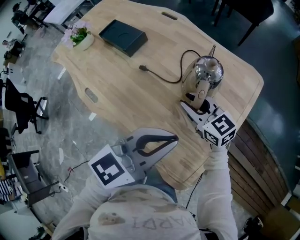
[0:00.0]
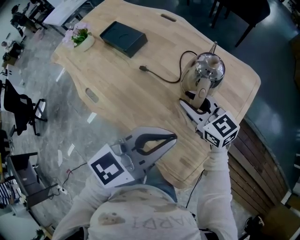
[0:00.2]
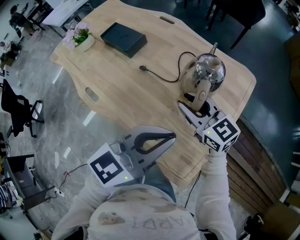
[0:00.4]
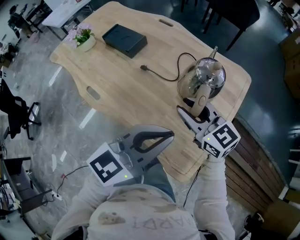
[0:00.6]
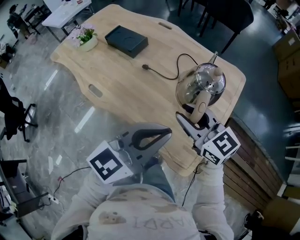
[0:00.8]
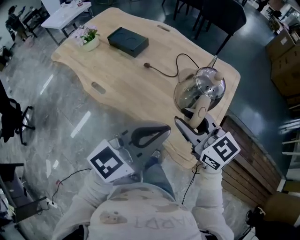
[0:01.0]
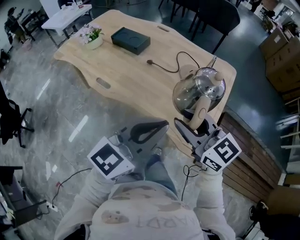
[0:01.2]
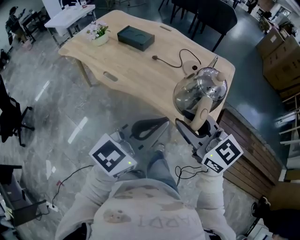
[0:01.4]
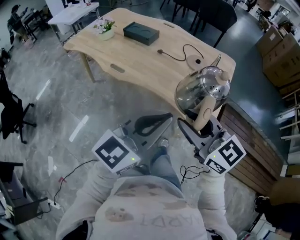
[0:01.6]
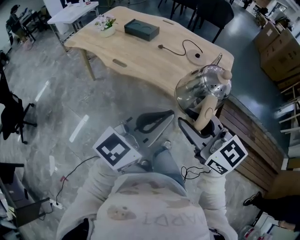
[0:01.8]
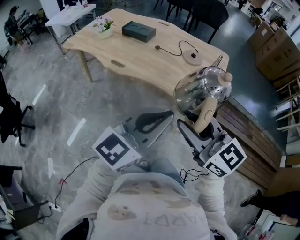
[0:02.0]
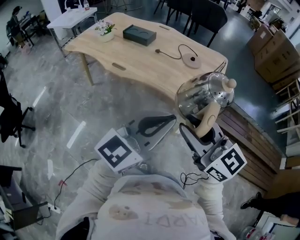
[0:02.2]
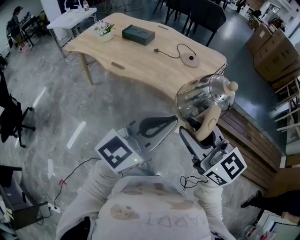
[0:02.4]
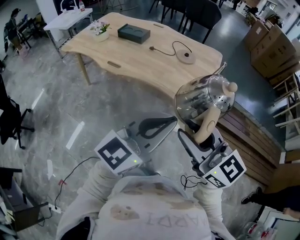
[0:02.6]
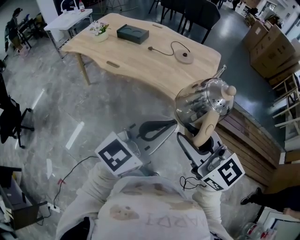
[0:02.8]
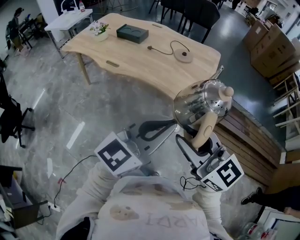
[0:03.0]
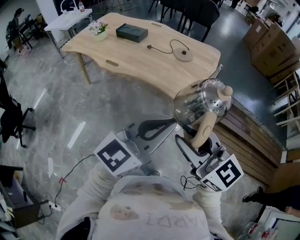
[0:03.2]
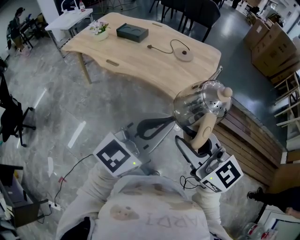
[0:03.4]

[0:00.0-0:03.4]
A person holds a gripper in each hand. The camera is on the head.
0:00.0 to 0:01.6: The right gripper goes some 50 cm backward and upward, while the left gripper shifts some 40 cm backward and to the left.
0:01.6 to 0:03.4: The two grippers go approximately 15 cm backward.

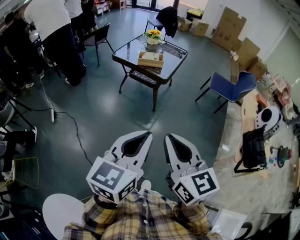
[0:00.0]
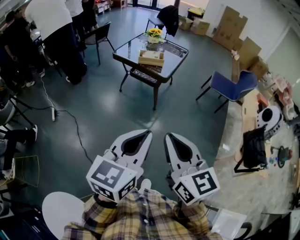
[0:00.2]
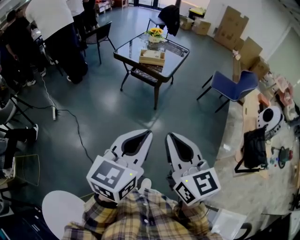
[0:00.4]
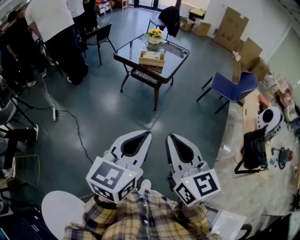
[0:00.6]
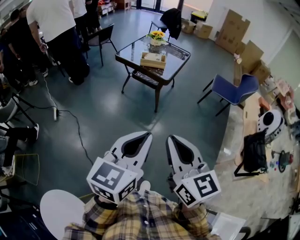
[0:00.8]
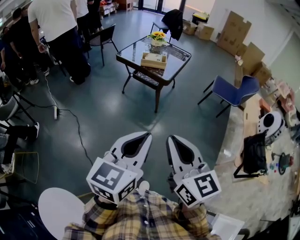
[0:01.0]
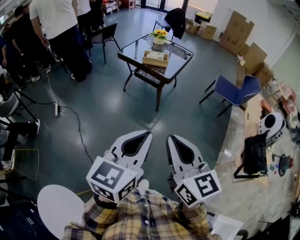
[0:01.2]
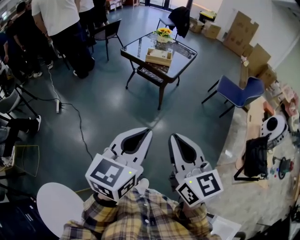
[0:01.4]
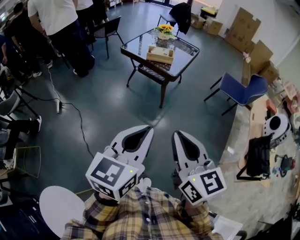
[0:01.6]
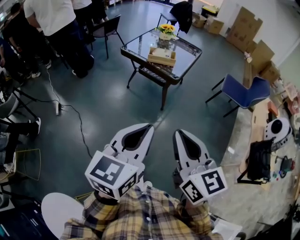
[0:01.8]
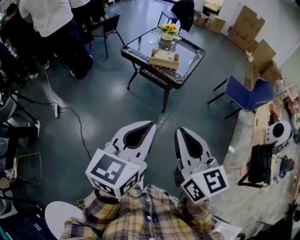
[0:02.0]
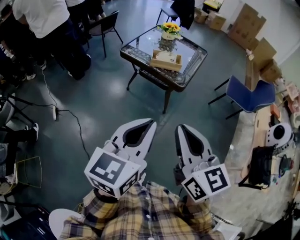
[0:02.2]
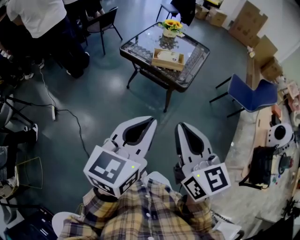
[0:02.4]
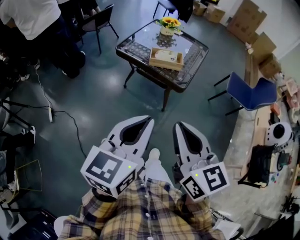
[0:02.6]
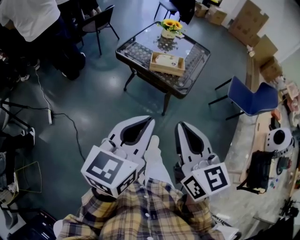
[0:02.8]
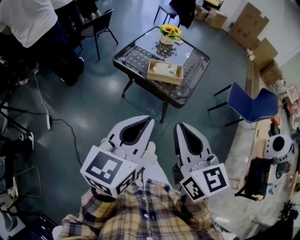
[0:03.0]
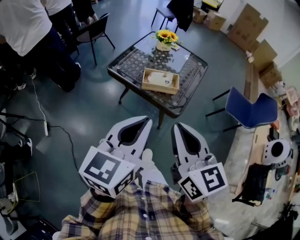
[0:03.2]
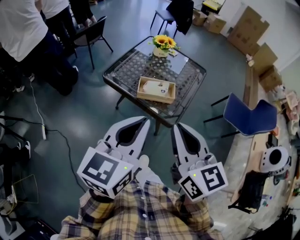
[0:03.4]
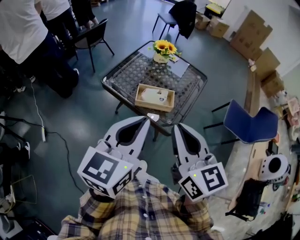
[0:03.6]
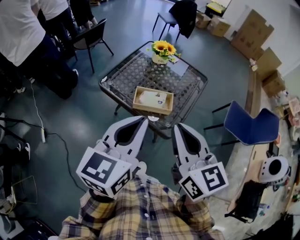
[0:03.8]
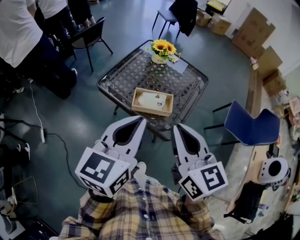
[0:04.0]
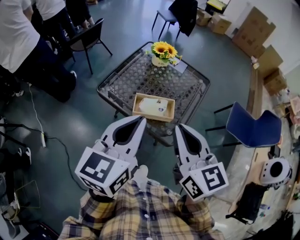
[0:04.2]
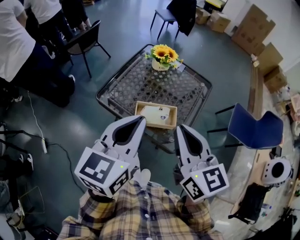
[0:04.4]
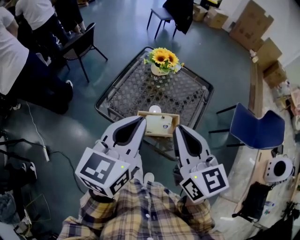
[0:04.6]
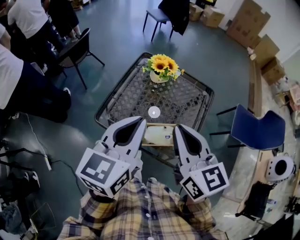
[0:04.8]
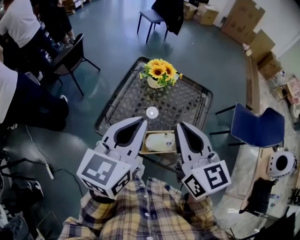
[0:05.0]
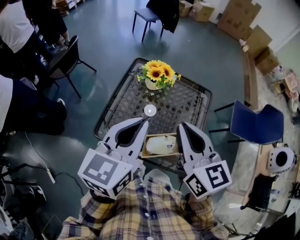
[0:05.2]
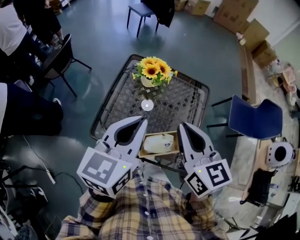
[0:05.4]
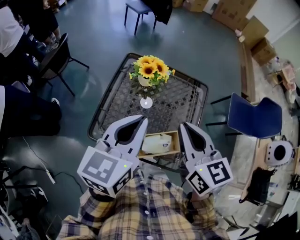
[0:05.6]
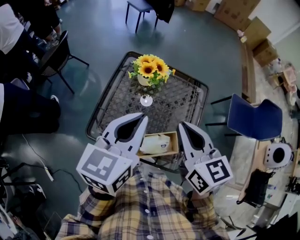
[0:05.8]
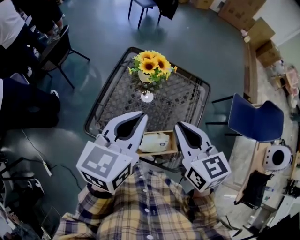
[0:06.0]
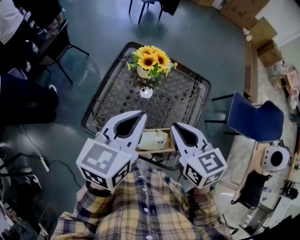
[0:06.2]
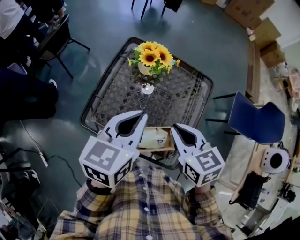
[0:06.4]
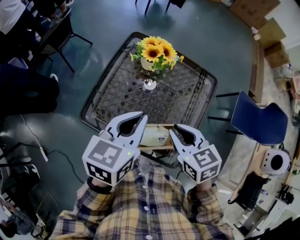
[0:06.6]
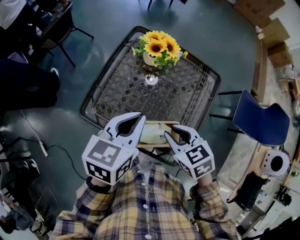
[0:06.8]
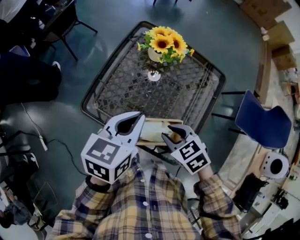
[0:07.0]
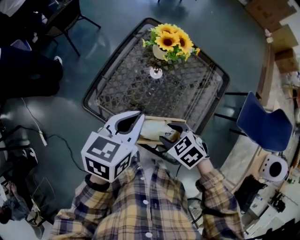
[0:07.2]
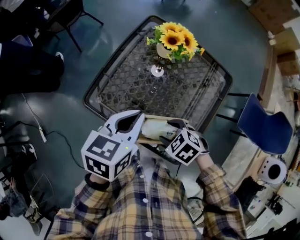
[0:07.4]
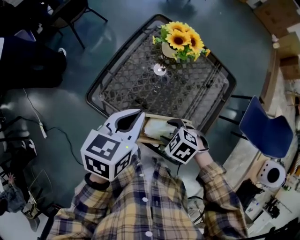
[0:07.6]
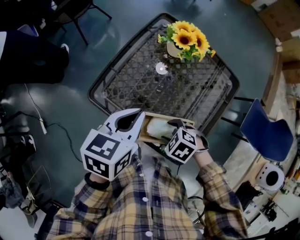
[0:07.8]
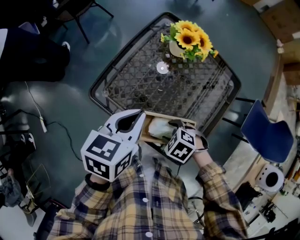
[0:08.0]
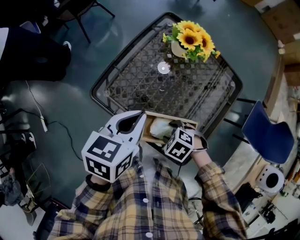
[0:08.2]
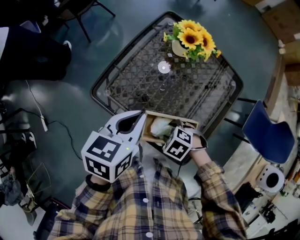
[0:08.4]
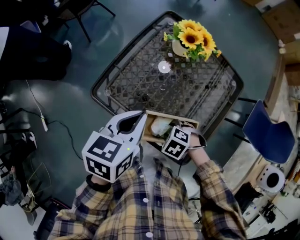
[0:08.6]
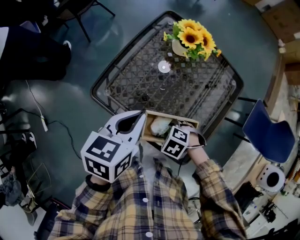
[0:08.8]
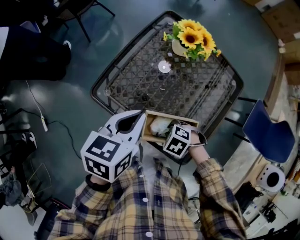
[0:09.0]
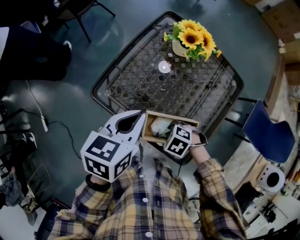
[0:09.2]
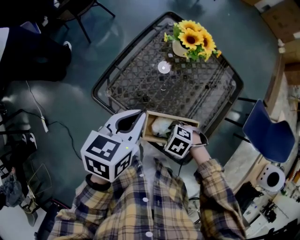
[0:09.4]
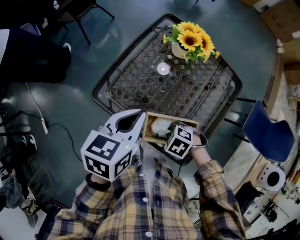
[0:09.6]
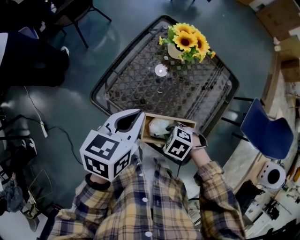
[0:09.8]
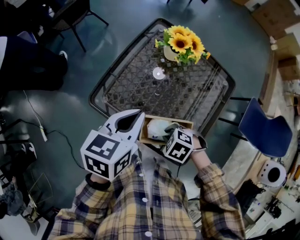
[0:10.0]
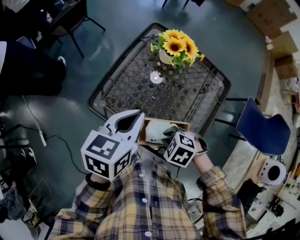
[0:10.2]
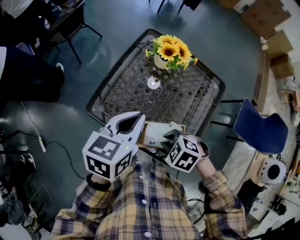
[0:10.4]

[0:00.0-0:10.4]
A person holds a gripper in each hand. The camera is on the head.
0:00.0 to 0:01.4: The grippers move only a little.
0:01.4 to 0:03.0: Both grippers travel together forward, roughly 35 cm.
0:03.0 to 0:04.4: Both grippers travel together forward, roughly 30 cm.
0:04.4 to 0:06.0: The two grippers go roughly 20 cm forward.
0:06.0 to 0:07.4: The left gripper shifts about 15 cm downward, and changes its angle by about 20 degrees, while the right gripper heads downward, covering some 25 cm, angles its fingers downward, by approximately 40 degrees, and opens up.
0:07.4 to 0:09.0: The right gripper goes about 10 cm downward, and closes.
0:09.0 to 0:10.4: The right gripper is displaced upward by roughly 10 cm, while the left gripper moves approximately 5 cm.

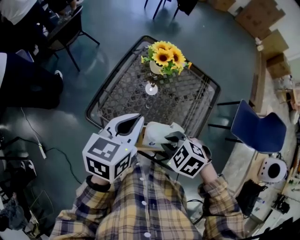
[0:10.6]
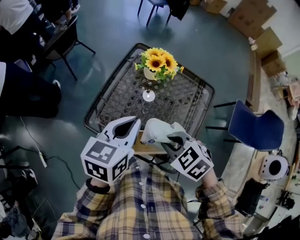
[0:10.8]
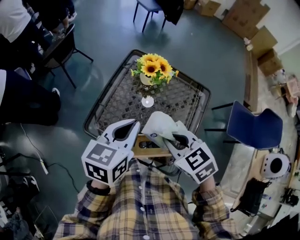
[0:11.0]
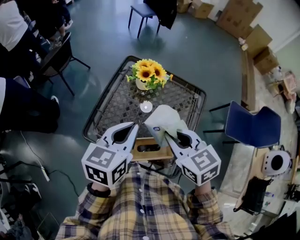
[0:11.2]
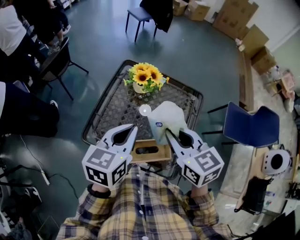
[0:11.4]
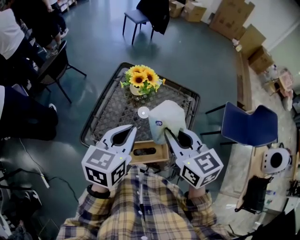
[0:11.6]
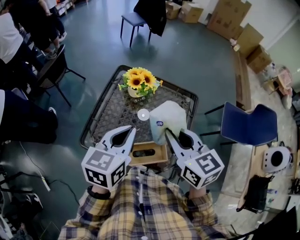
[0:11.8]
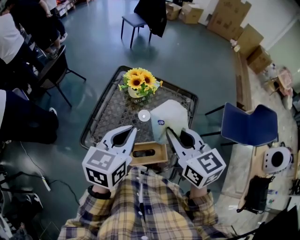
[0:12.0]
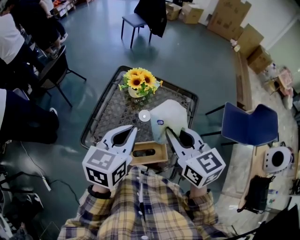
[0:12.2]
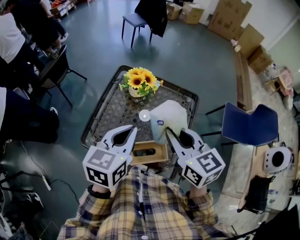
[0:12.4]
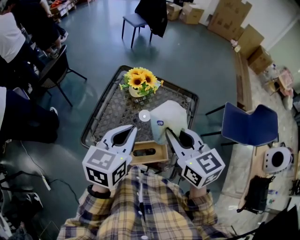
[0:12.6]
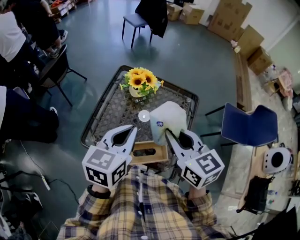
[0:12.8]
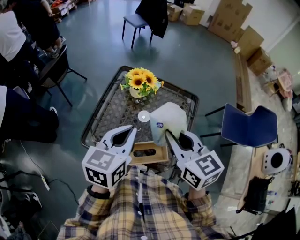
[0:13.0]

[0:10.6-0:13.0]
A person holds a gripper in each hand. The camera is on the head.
0:10.6 to 0:11.8: The right gripper goes some 20 cm upward, and angles its fingers upward, by about 40 degrees; the left gripper goes roughly 5 cm upward.
0:11.8 to 0:13.0: Both grippers stay about where they are.

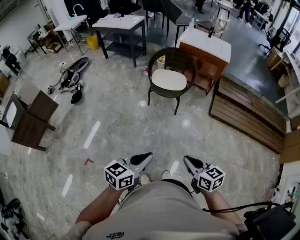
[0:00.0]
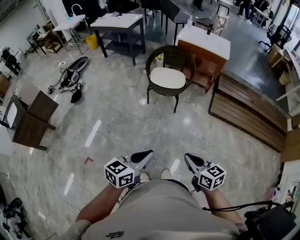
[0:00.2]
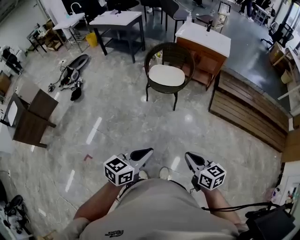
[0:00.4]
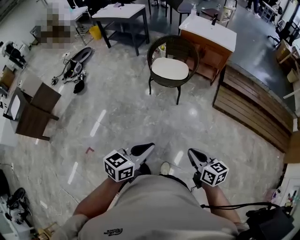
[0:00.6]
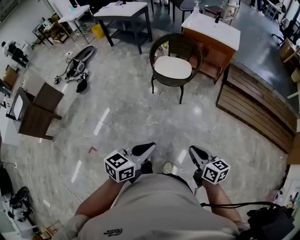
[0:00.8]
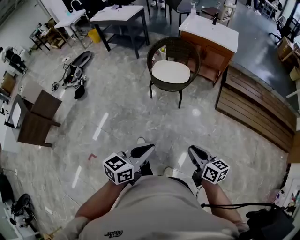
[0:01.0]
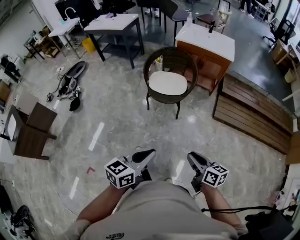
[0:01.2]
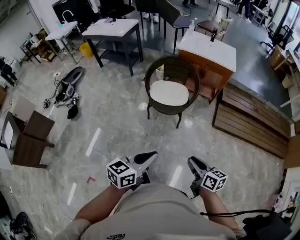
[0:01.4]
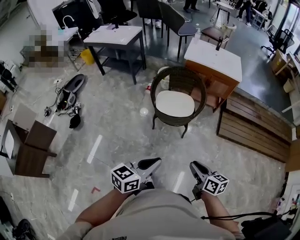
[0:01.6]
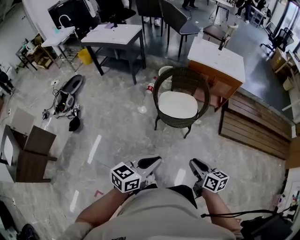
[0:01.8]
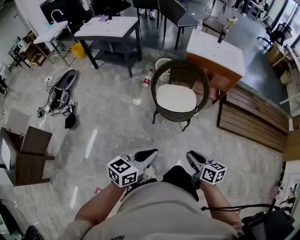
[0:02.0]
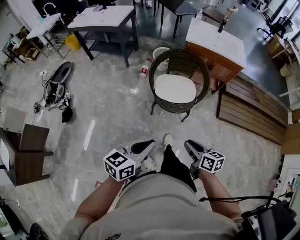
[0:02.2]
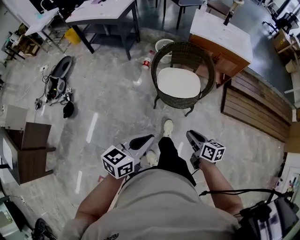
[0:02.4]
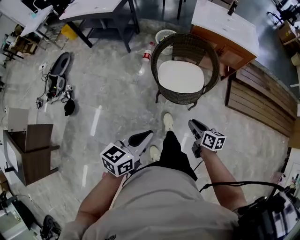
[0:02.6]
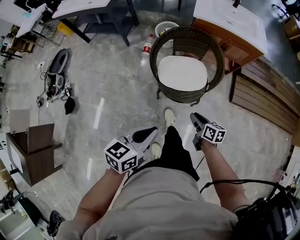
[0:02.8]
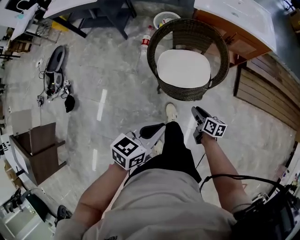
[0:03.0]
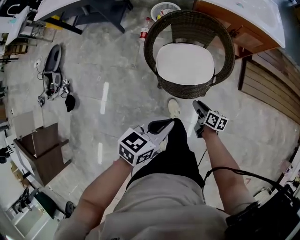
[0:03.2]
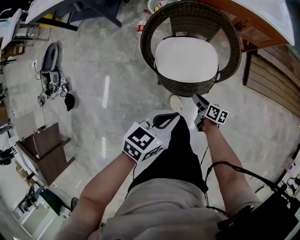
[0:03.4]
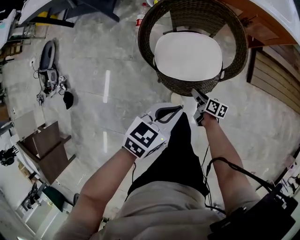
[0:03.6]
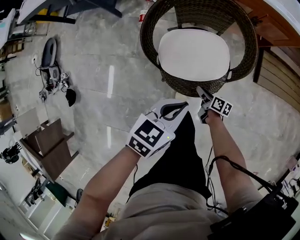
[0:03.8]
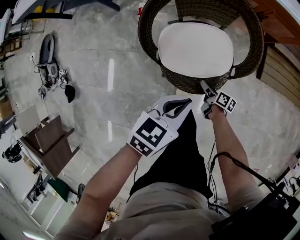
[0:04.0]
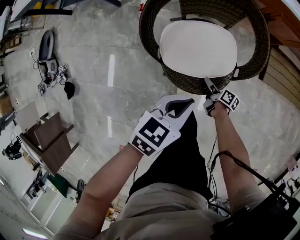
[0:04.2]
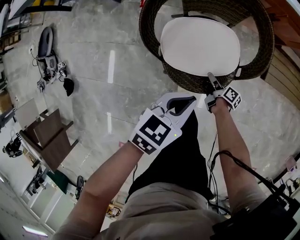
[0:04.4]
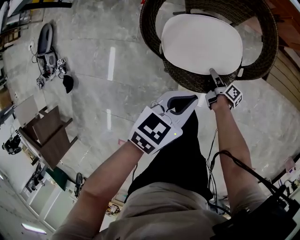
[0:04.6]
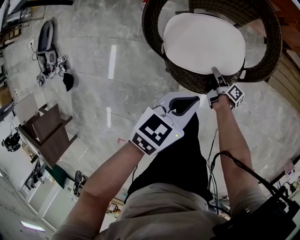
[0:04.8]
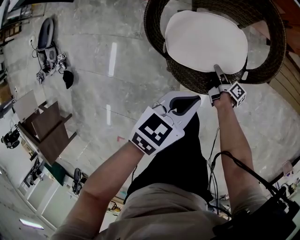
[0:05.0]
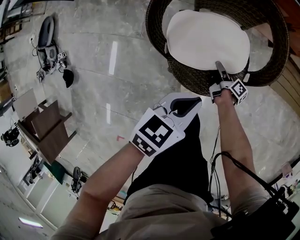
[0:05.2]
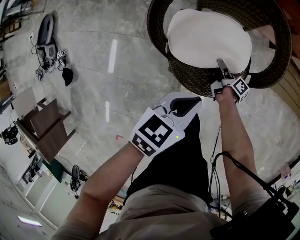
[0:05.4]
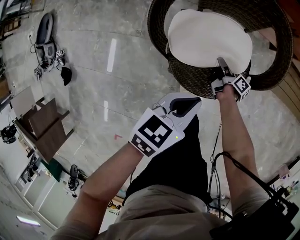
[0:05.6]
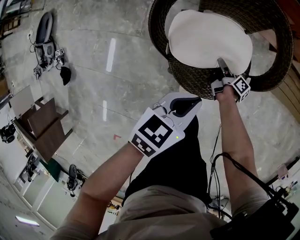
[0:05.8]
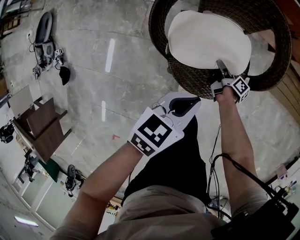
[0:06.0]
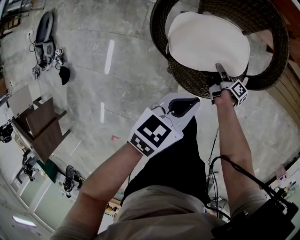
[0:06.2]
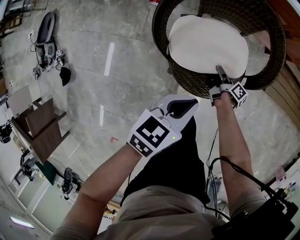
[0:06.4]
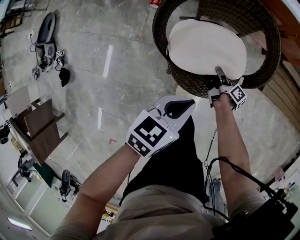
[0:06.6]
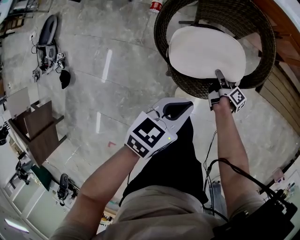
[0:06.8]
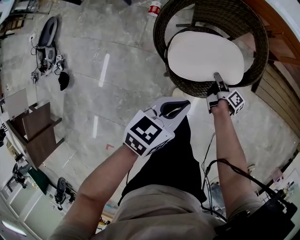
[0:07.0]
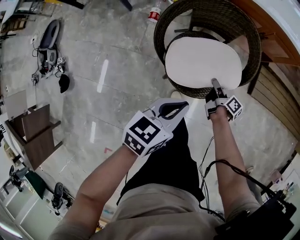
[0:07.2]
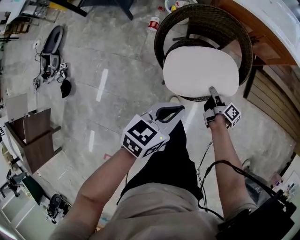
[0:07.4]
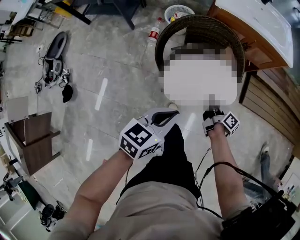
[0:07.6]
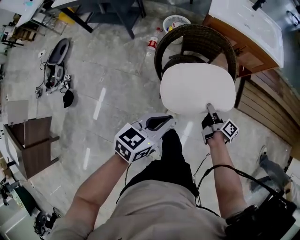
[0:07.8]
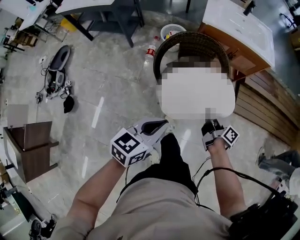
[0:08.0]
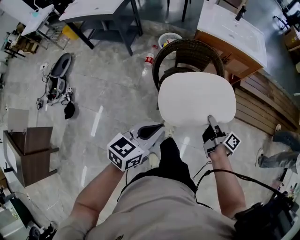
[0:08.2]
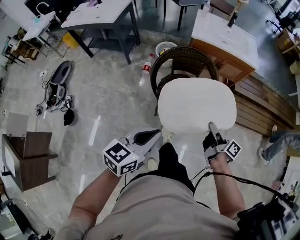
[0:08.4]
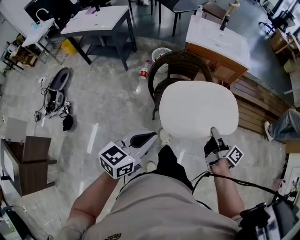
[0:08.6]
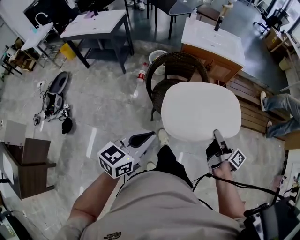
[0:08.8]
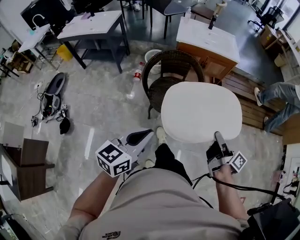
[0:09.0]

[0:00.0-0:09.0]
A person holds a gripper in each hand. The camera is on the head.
0:00.0 to 0:01.6: The left gripper changes place by roughly 30 cm.
0:01.6 to 0:03.0: The left gripper moves approximately 35 cm.
0:03.0 to 0:04.4: The left gripper travels downward by some 20 cm.
0:06.0 to 0:07.6: The left gripper shifts some 20 cm upward.
0:07.6 to 0:09.0: The left gripper moves roughly 30 cm.
